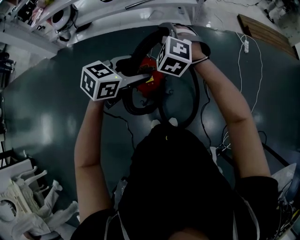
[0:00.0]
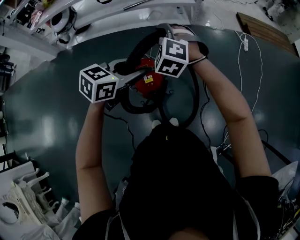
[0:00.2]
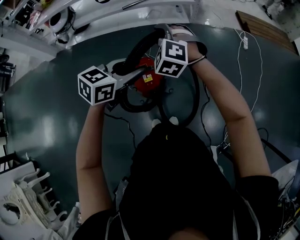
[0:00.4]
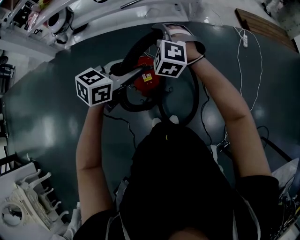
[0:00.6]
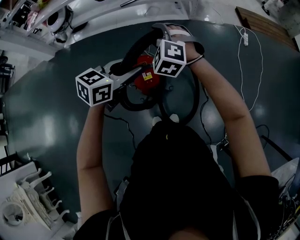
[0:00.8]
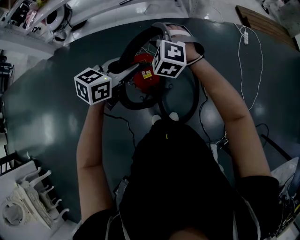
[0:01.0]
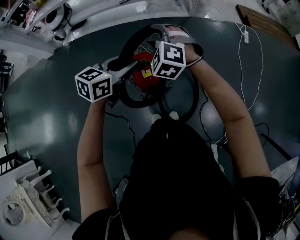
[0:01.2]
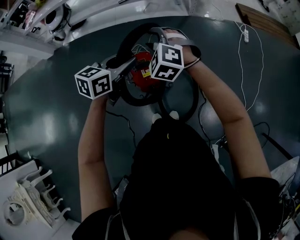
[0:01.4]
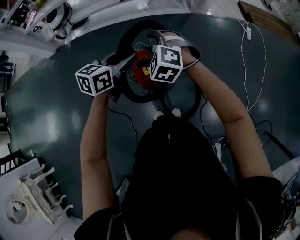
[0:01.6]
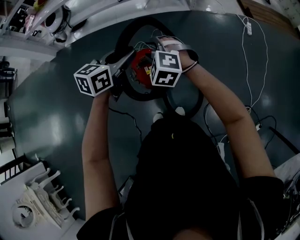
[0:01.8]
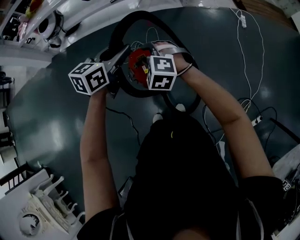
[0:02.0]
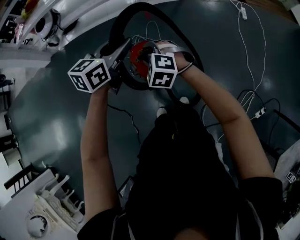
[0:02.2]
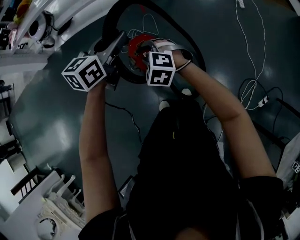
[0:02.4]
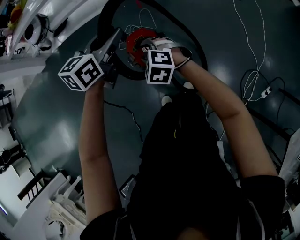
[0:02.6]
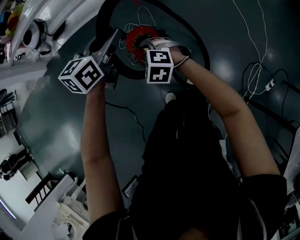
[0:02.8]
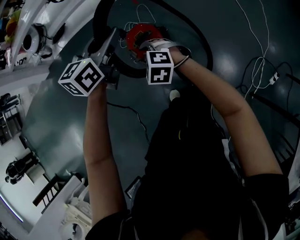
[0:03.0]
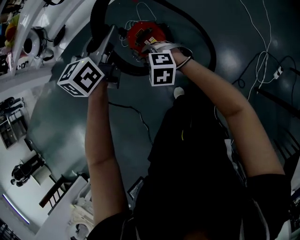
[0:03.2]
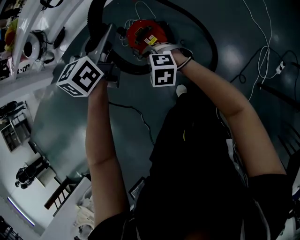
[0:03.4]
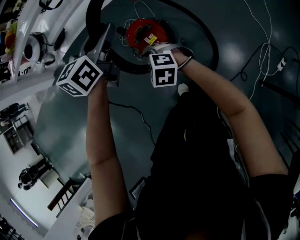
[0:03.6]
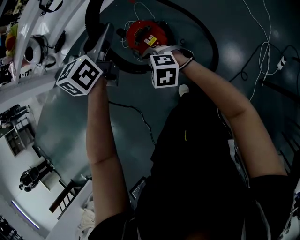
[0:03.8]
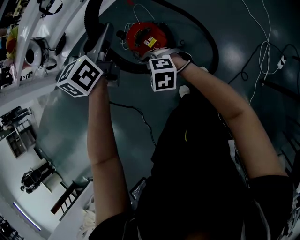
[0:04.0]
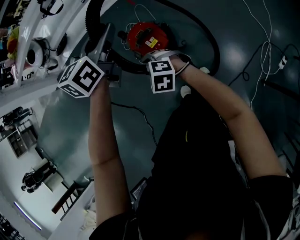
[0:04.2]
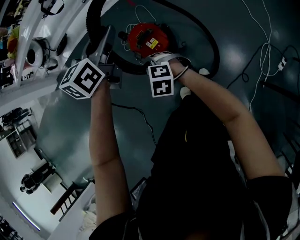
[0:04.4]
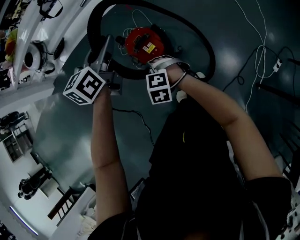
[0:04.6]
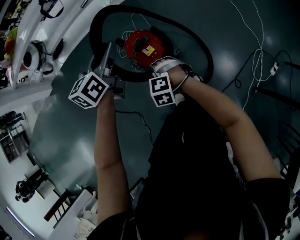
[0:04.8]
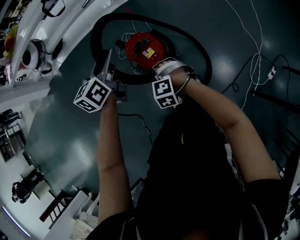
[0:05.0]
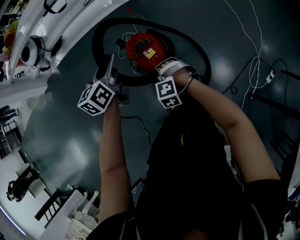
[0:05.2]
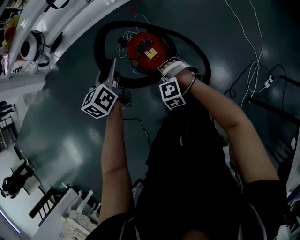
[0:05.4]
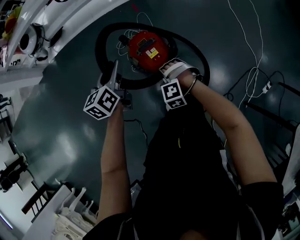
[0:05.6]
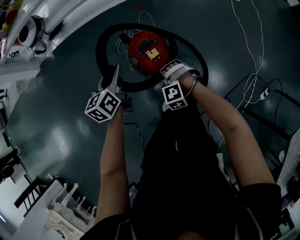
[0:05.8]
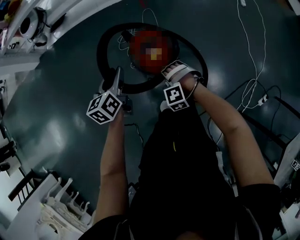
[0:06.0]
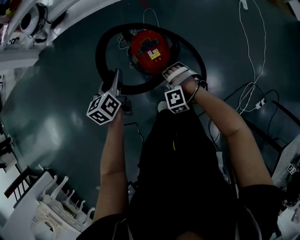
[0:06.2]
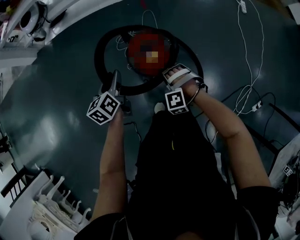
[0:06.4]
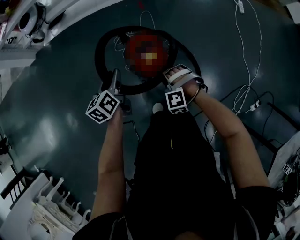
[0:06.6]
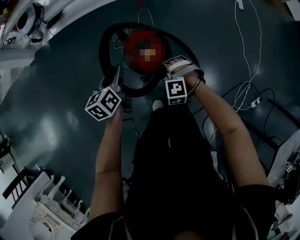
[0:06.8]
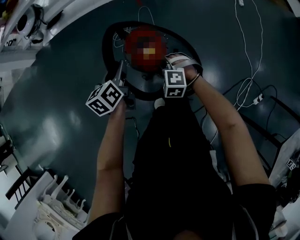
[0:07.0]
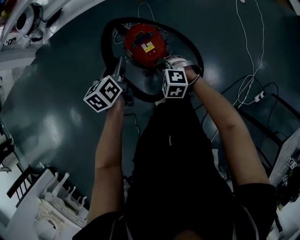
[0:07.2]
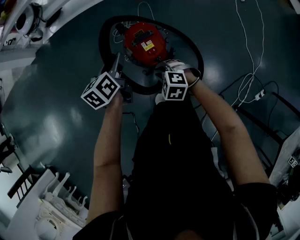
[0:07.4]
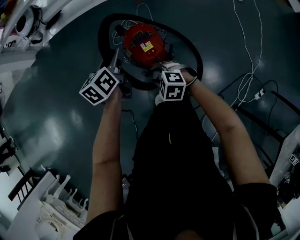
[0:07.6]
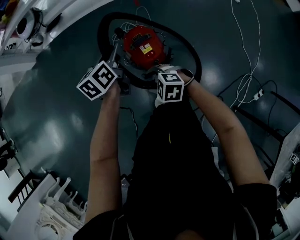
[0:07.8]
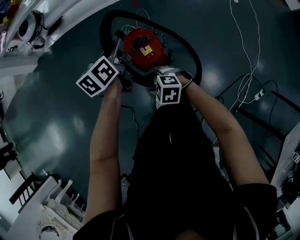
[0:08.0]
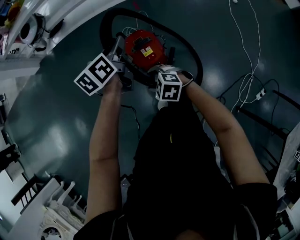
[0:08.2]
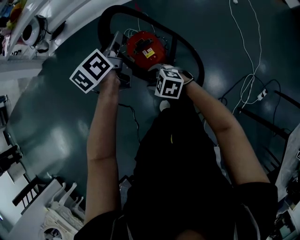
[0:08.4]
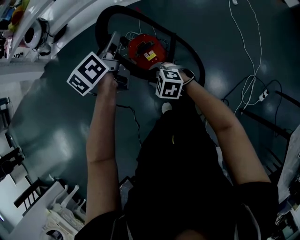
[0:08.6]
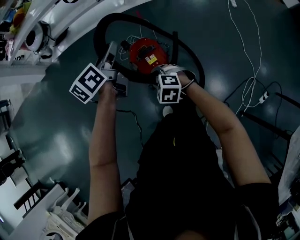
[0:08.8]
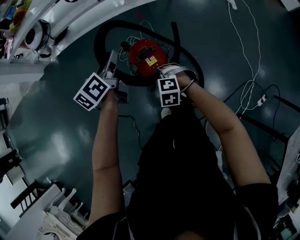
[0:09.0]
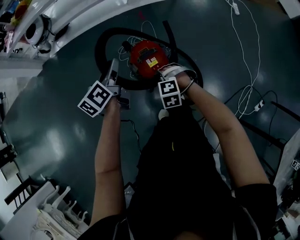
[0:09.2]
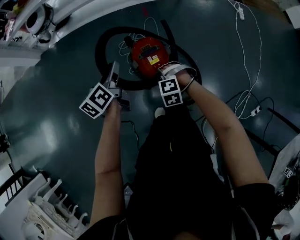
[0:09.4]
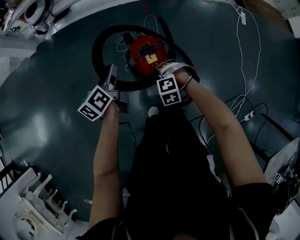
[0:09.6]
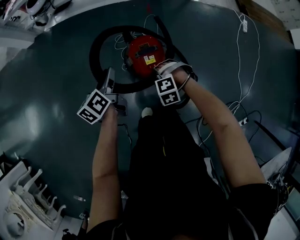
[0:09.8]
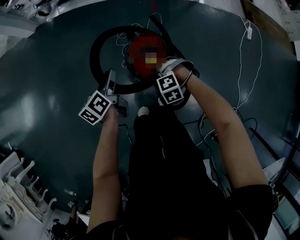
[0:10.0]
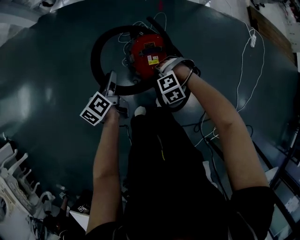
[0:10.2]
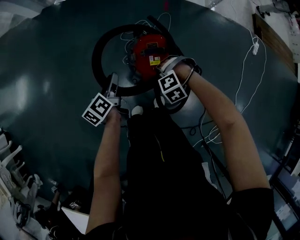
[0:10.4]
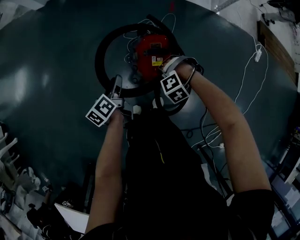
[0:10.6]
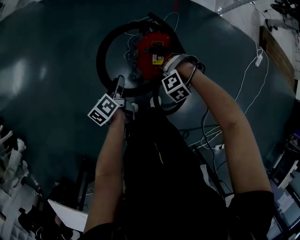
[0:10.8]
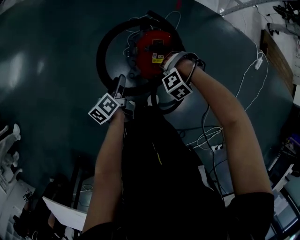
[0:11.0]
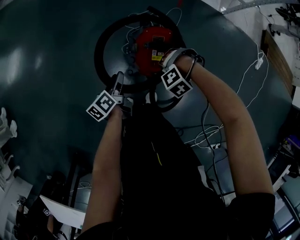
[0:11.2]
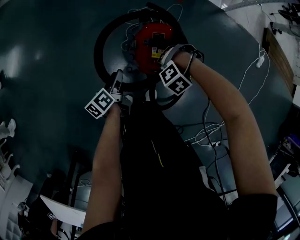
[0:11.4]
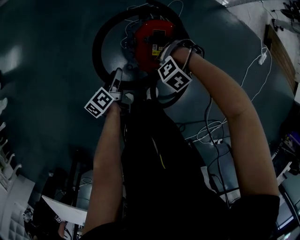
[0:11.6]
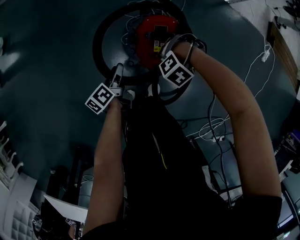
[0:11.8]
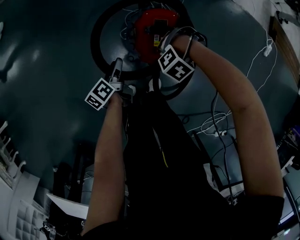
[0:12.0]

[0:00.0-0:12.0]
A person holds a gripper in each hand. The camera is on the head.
0:00.0 to 0:01.6: The right gripper shifts about 5 cm downward. Meanwhile the left gripper changes place by roughly 5 cm, rotates approximately 20 degrees, and closes up.
0:01.6 to 0:03.0: The right gripper goes some 20 cm downward, backward and to the left, and changes its angle by about 20 degrees.
0:03.0 to 0:04.4: The right gripper travels backward by approximately 5 cm.
0:04.4 to 0:06.0: The right gripper heads downward and to the right, covering about 10 cm, and rotates around the line of its fingers by some 40 degrees, counterclockwise from behind. Meanwhile the left gripper is displaced downward and to the left by roughly 20 cm, and turns by roughly 30 degrees.
0:06.0 to 0:07.6: The right gripper changes place by some 5 cm, turns by approximately 40 degrees, and closes and opens again, while the left gripper is displaced to the right by roughly 5 cm.
0:07.6 to 0:09.0: The left gripper shifts roughly 10 cm upward.
0:09.0 to 0:10.4: The left gripper moves downward, about 20 cm, and rotates some 40 degrees. The right gripper shifts roughly 10 cm downward, and twists approximately 50 degrees counterclockwise, seen from behind.
0:10.4 to 0:12.0: The right gripper moves downward, approximately 10 cm, and swivels roughly 30 degrees, while the left gripper travels downward by some 15 cm.

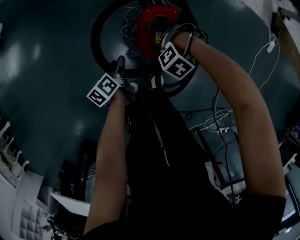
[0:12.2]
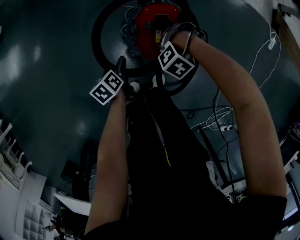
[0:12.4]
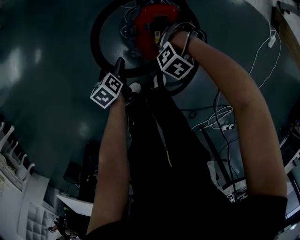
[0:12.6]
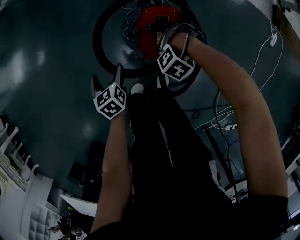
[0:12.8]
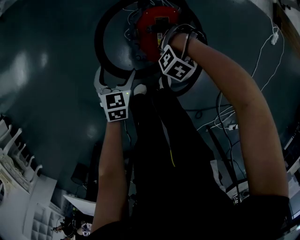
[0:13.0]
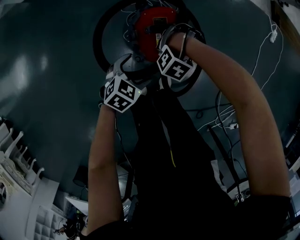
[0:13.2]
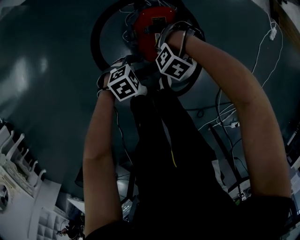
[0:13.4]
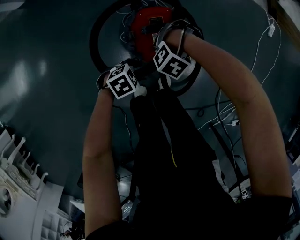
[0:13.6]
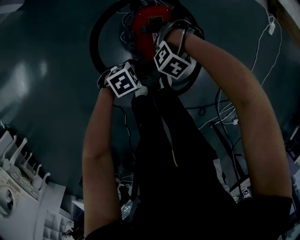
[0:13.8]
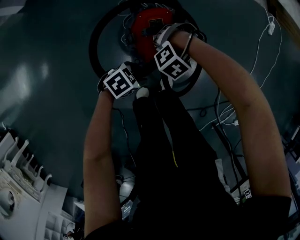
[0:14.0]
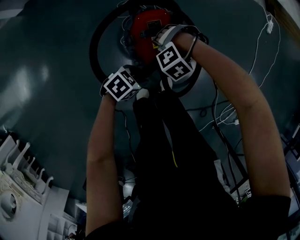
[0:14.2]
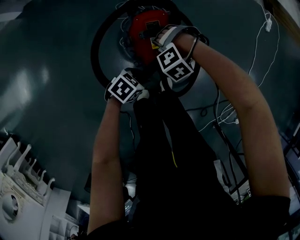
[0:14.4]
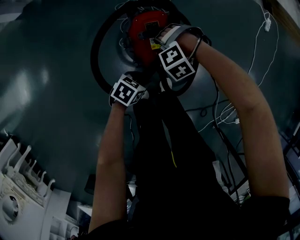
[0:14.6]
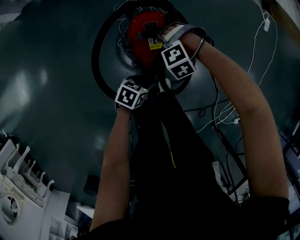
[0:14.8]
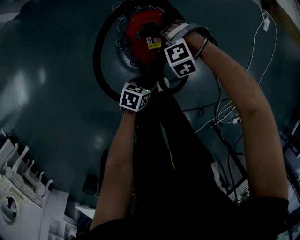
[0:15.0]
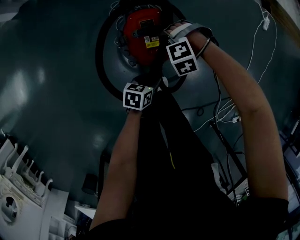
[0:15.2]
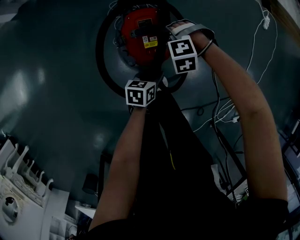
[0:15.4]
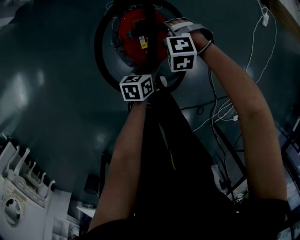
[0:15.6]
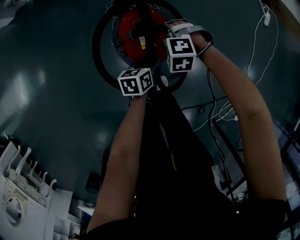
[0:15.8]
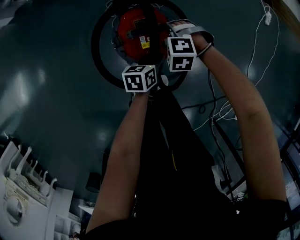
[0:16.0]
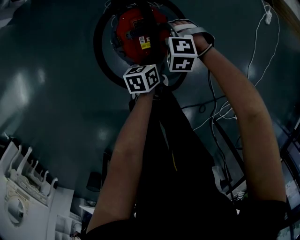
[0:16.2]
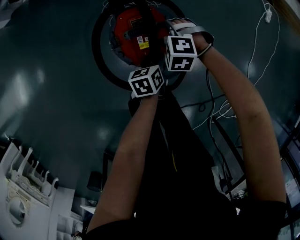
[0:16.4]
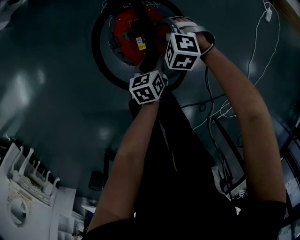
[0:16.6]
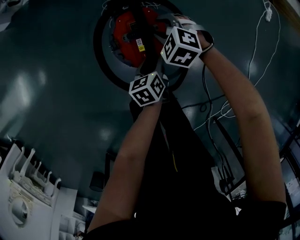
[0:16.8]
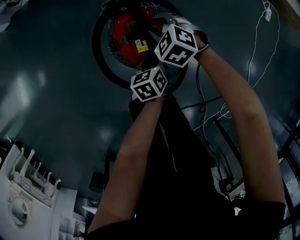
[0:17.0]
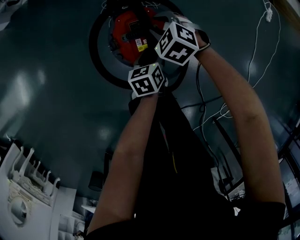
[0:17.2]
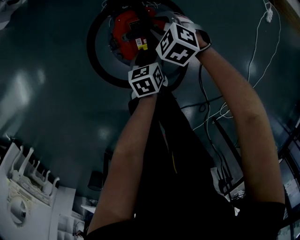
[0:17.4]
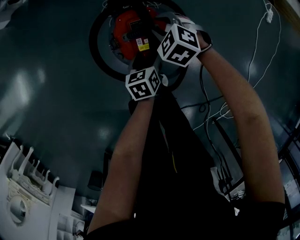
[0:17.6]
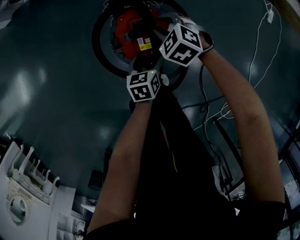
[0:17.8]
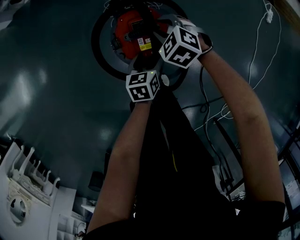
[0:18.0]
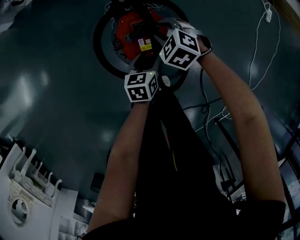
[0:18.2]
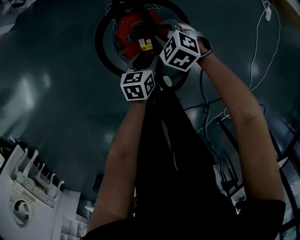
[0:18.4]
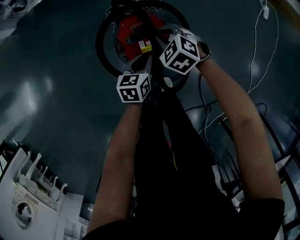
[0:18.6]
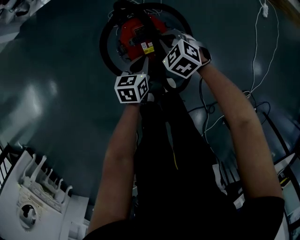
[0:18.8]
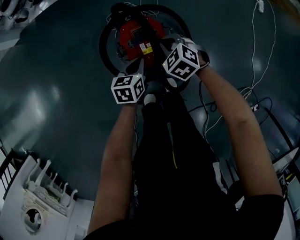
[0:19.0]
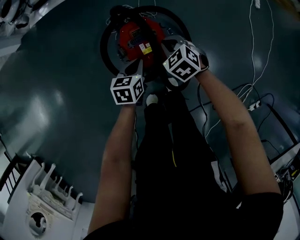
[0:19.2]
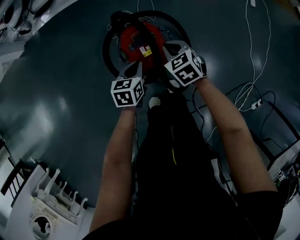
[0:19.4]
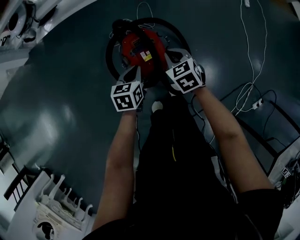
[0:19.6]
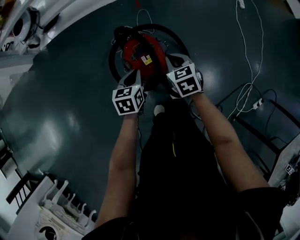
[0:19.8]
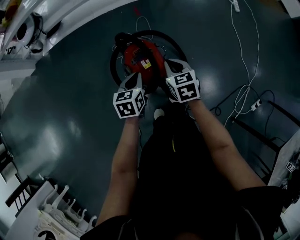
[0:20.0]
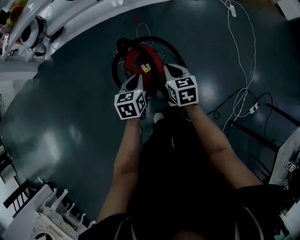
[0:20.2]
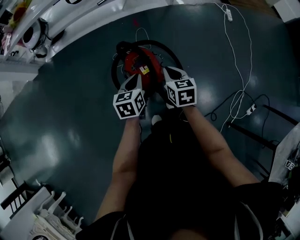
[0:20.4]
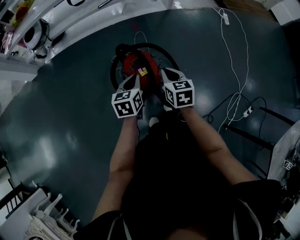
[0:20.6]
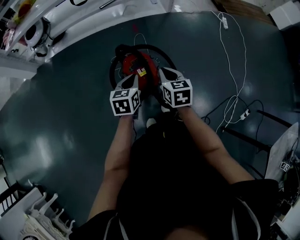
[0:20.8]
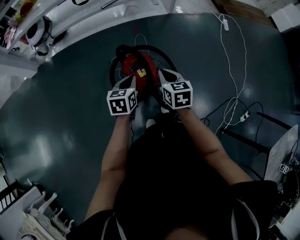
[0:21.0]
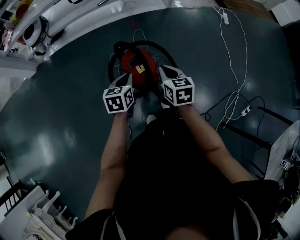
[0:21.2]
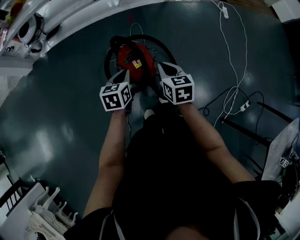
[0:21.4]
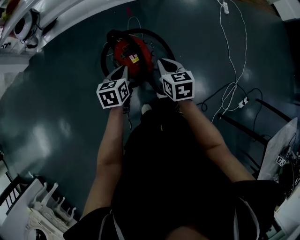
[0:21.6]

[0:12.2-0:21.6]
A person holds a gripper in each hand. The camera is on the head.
0:12.2 to 0:13.8: The left gripper travels upward and back again, roughly 5 cm each way, turns by roughly 120 degrees, and opens, then closes once more.
0:13.8 to 0:15.4: The right gripper ends up about 5 cm from where it was, and changes its angle by roughly 40 degrees; the left gripper changes place by about 10 cm, and rolls counterclockwise, seen from behind, by roughly 50 degrees.
0:15.4 to 0:17.0: The right gripper changes place by some 10 cm, swivels some 40 degrees, and closes up. Meanwhile the left gripper changes place by approximately 10 cm, and rotates roughly 30 degrees.
0:17.0 to 0:18.4: The grippers stay close to where they were, moving slightly.
0:18.4 to 0:20.0: The right gripper moves upward and backward, approximately 20 cm, and rolls clockwise, seen from behind, by about 50 degrees. Meanwhile the left gripper moves upward, approximately 20 cm, and closes its fingers.
0:20.0 to 0:21.6: The right gripper heads upward, covering about 5 cm.

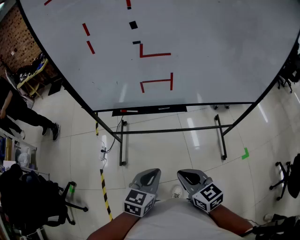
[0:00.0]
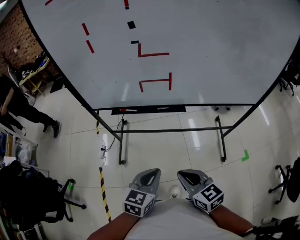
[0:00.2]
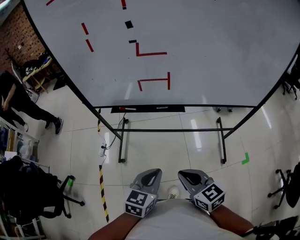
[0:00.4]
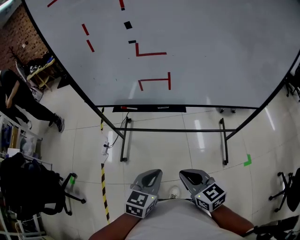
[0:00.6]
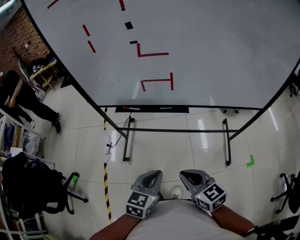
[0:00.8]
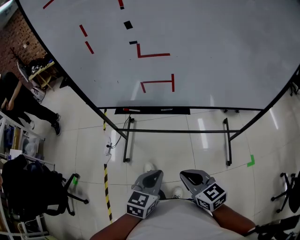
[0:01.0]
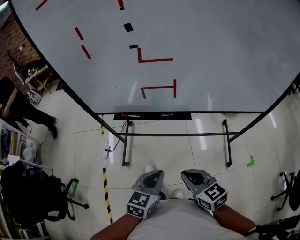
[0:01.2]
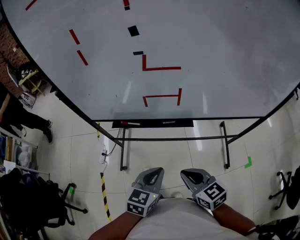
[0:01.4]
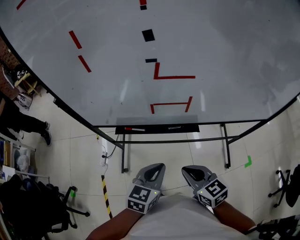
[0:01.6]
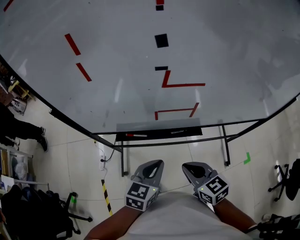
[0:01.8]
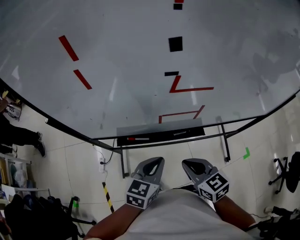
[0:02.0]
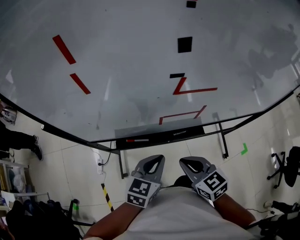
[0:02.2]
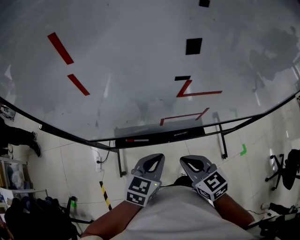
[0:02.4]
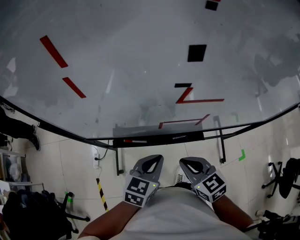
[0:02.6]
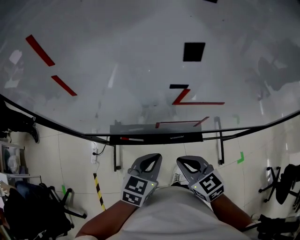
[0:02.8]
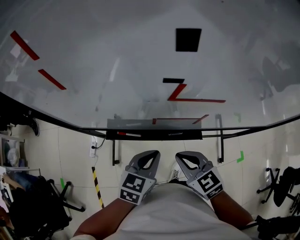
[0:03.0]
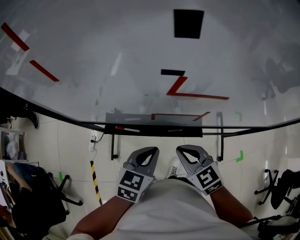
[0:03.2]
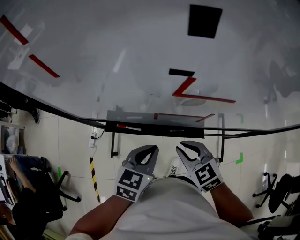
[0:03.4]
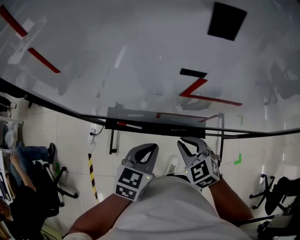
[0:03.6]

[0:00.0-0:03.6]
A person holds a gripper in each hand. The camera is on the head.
0:00.0 to 0:01.8: The grippers both shift forward by roughly 20 cm.
0:01.8 to 0:03.6: The right gripper moves forward and downward, approximately 15 cm, and turns by some 40 degrees. The left gripper moves forward, approximately 10 cm.
